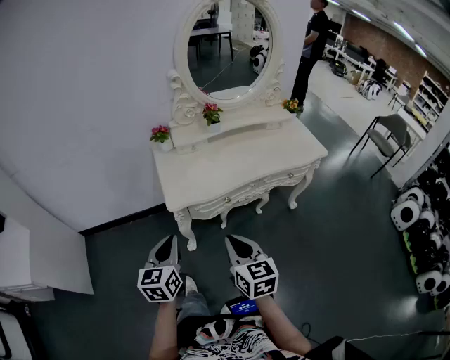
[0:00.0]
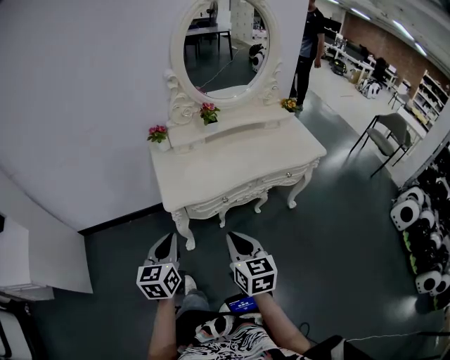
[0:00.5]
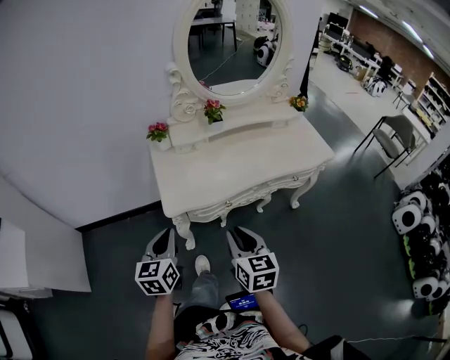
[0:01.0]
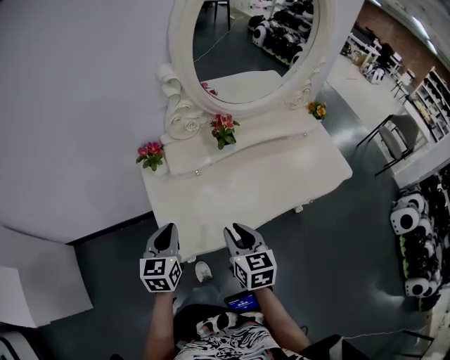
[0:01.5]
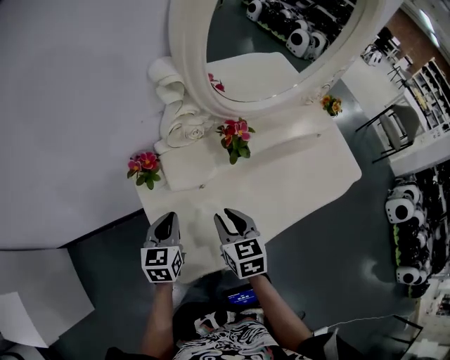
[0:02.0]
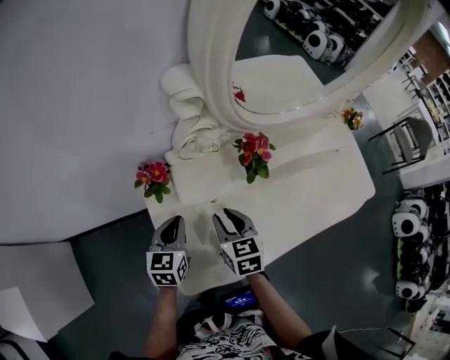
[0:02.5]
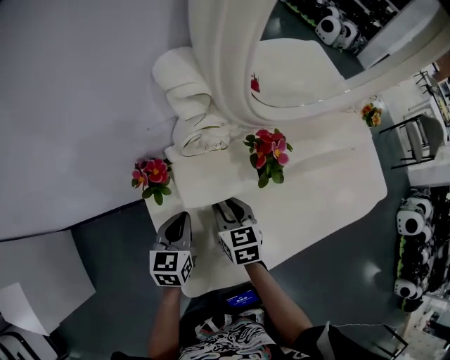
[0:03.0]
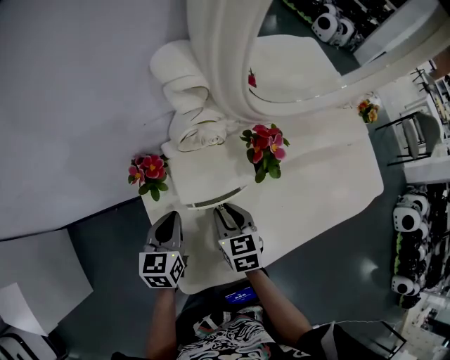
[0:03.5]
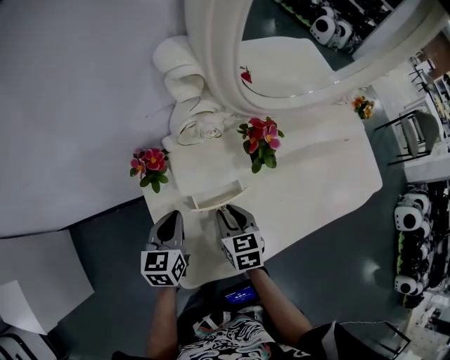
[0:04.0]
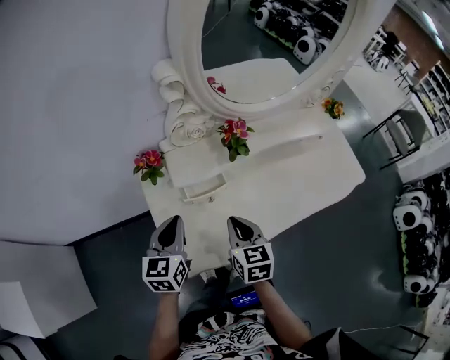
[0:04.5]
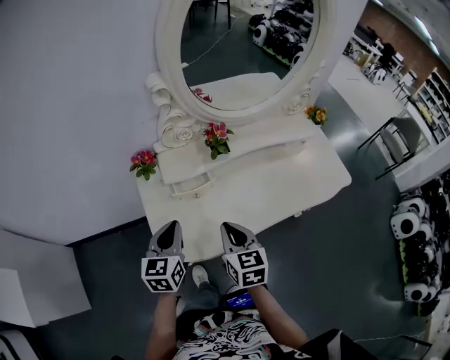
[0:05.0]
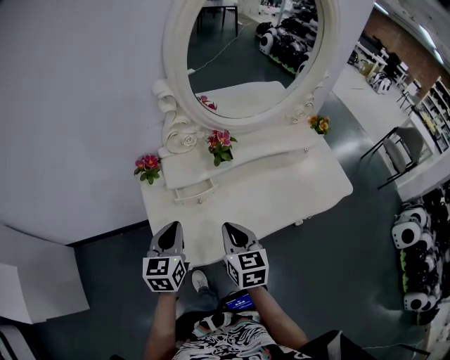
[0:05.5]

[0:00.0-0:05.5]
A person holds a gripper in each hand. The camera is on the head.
0:00.0 to 0:02.0: Both grippers are carried forward, about 40 cm. The right gripper opens its fingers.
0:02.0 to 0:03.5: The left gripper shifts by roughly 5 cm. Meanwhile the right gripper goes some 10 cm downward and forward.
0:03.5 to 0:05.5: The left gripper shifts roughly 20 cm backward, upward and to the right; the right gripper goes approximately 20 cm upward, backward and to the right, and closes.

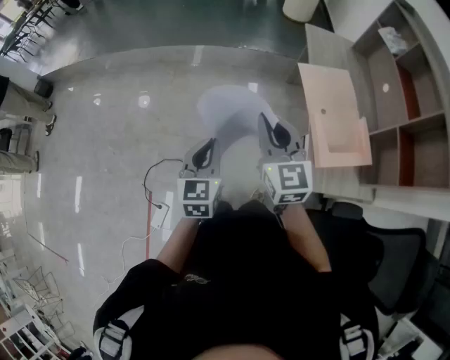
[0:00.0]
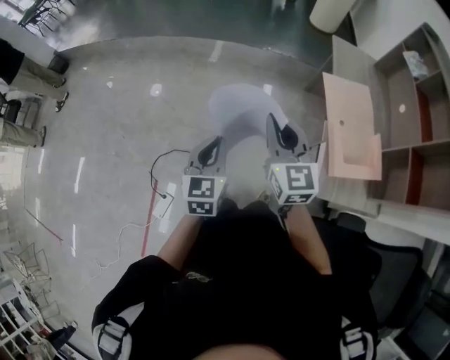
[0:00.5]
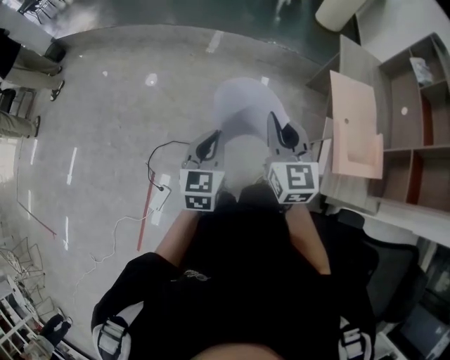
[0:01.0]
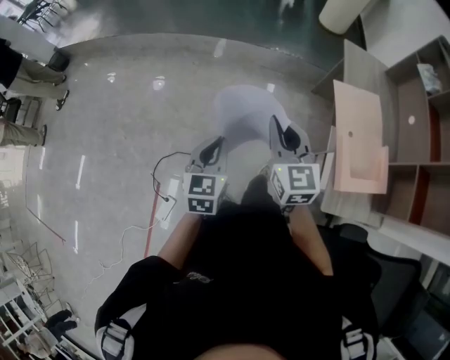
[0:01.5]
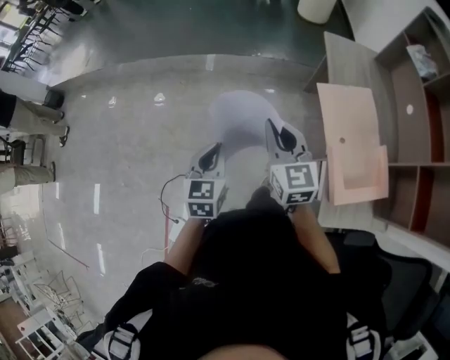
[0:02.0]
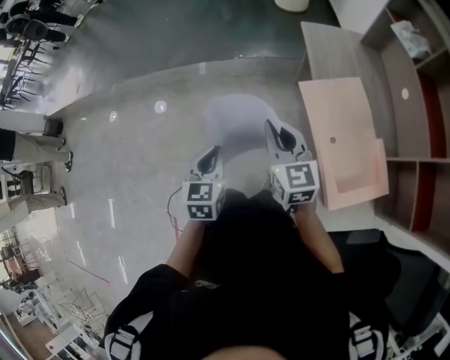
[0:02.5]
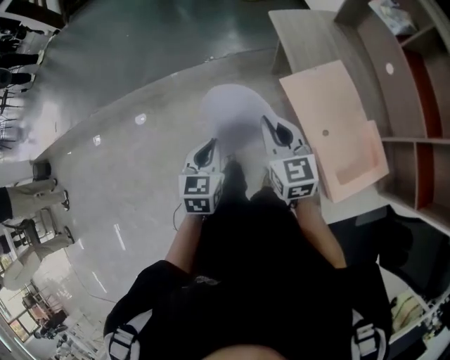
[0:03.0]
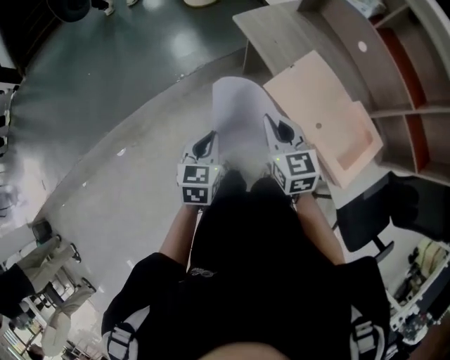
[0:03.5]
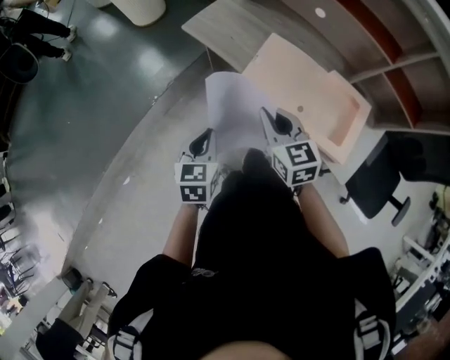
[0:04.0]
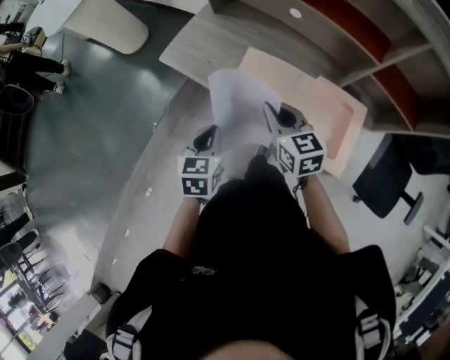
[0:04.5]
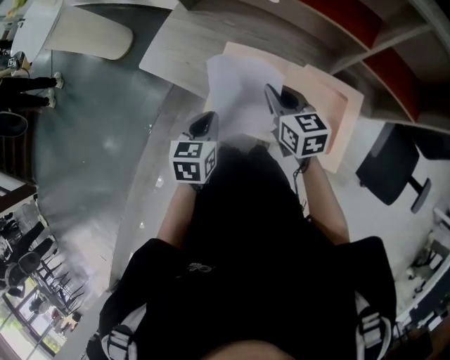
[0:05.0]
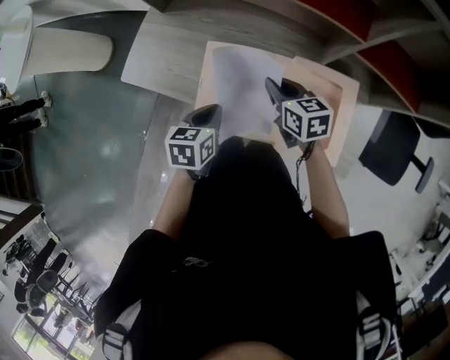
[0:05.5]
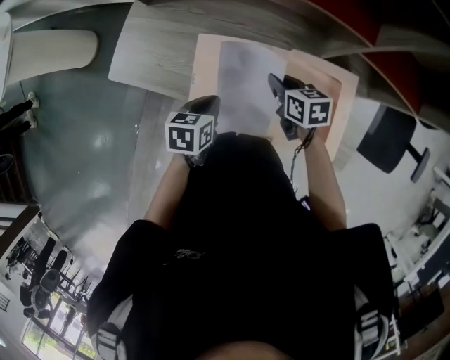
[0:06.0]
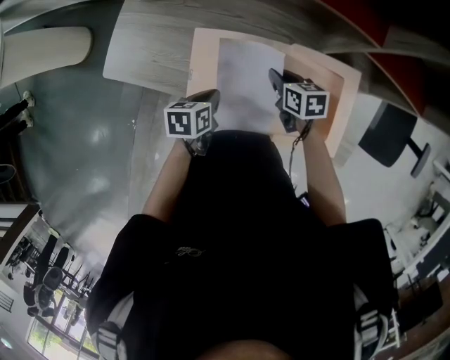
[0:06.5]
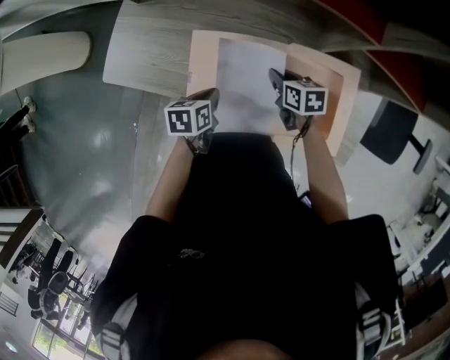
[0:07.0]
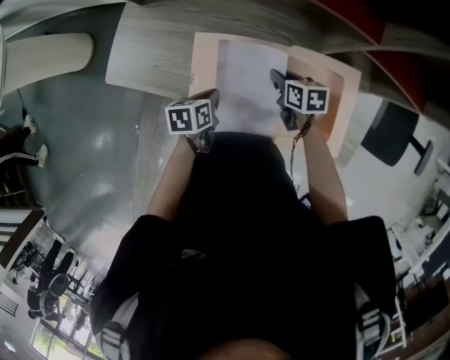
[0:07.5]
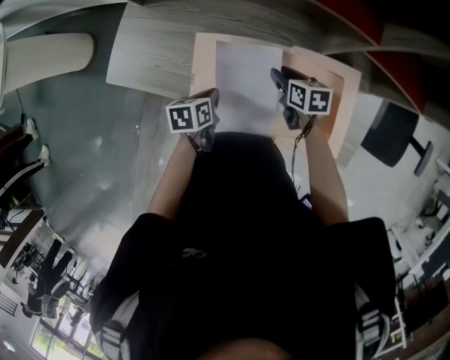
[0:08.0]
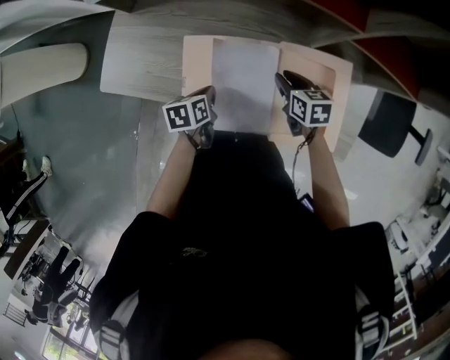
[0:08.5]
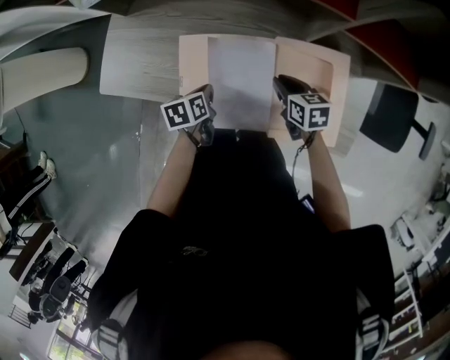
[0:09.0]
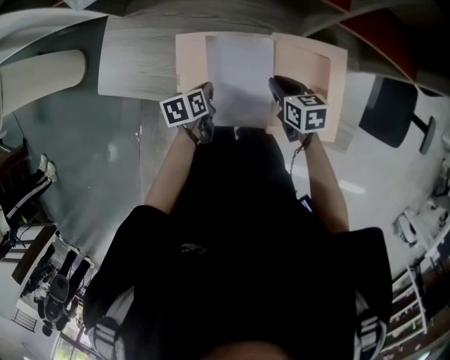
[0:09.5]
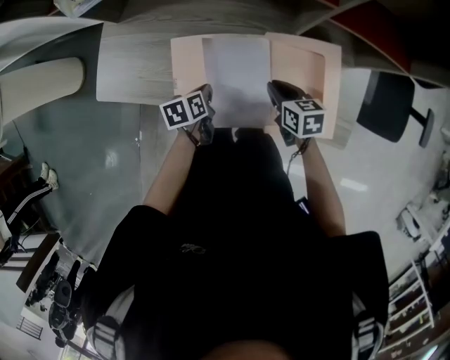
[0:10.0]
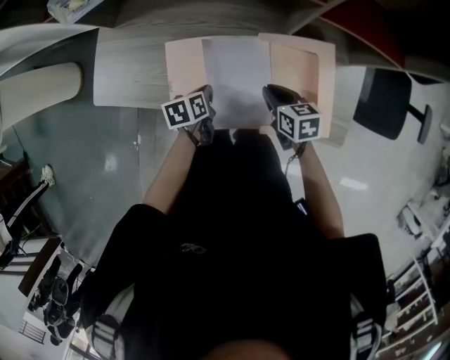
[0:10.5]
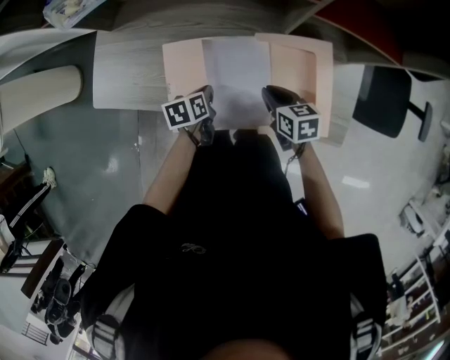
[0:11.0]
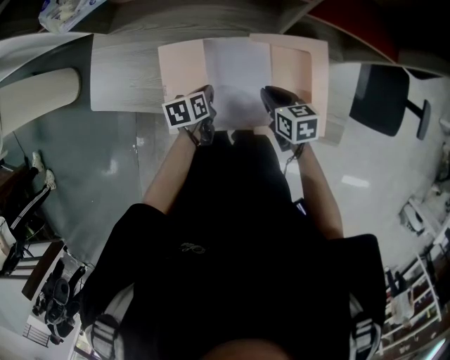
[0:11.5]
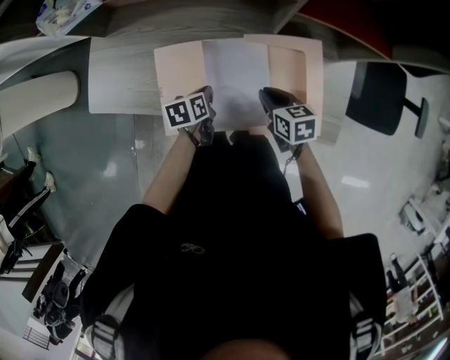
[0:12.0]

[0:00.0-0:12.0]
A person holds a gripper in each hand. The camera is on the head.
0:00.0 to 0:02.0: The grippers both shift forward by some 15 cm.
0:02.0 to 0:04.0: The right gripper moves approximately 25 cm, and changes its angle by roughly 50 degrees; the left gripper shifts by about 35 cm, and rotates approximately 50 degrees.
0:04.0 to 0:06.0: The left gripper ends up approximately 30 cm from where it was, and rotates approximately 40 degrees, while the right gripper moves some 35 cm, and turns by roughly 40 degrees.
0:06.0 to 0:08.0: The two grippers go roughly 5 cm downward. The right gripper opens its fingers.
0:08.0 to 0:10.0: The right gripper is displaced backward by about 10 cm, and closes up.
0:10.0 to 0:12.0: The left gripper is displaced to the right by about 5 cm.

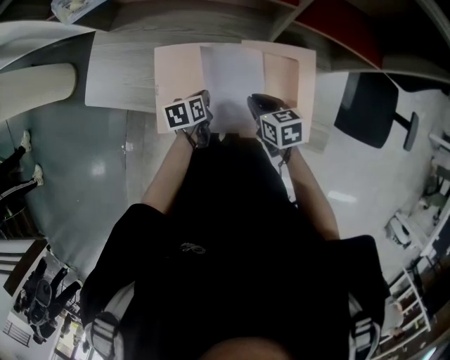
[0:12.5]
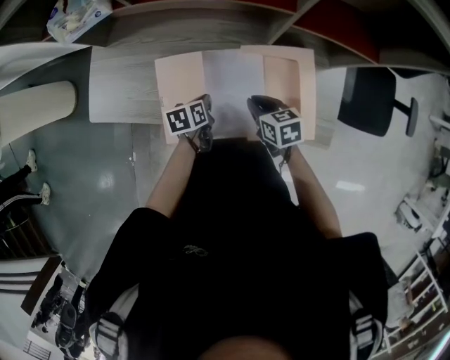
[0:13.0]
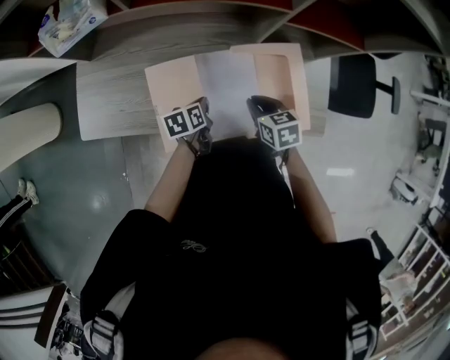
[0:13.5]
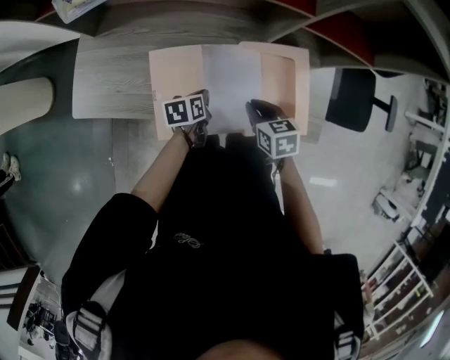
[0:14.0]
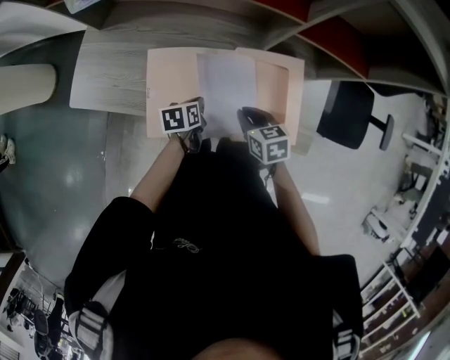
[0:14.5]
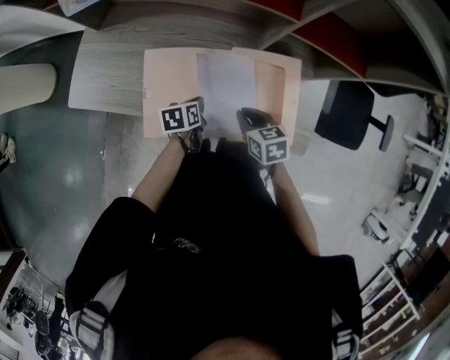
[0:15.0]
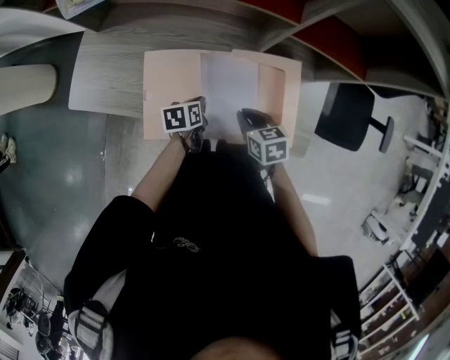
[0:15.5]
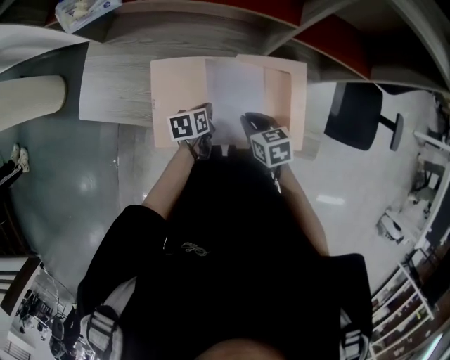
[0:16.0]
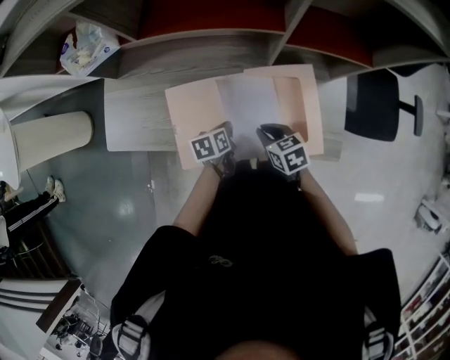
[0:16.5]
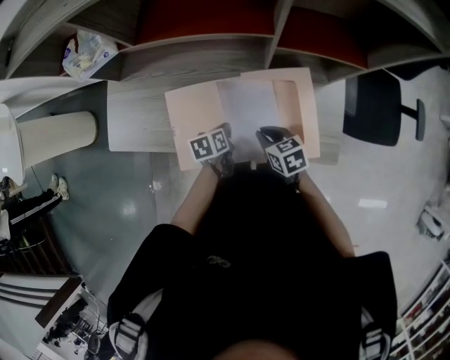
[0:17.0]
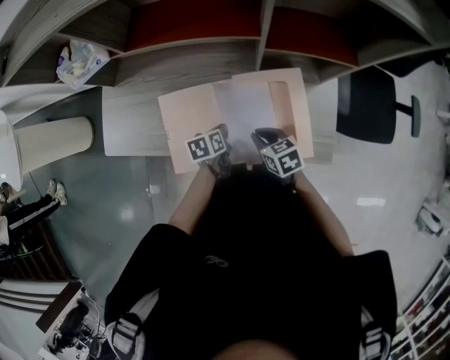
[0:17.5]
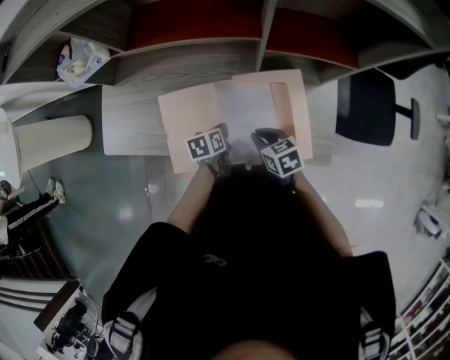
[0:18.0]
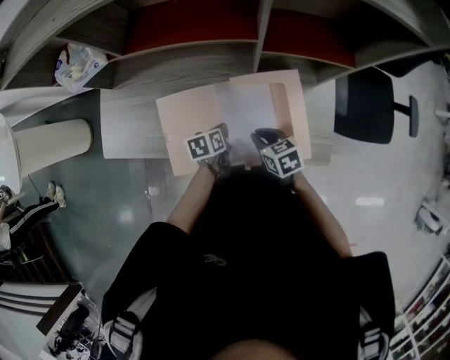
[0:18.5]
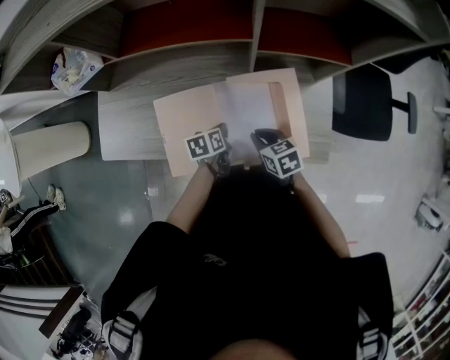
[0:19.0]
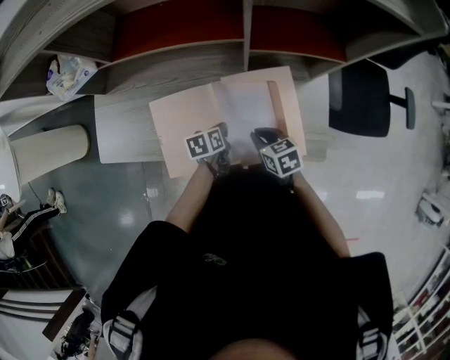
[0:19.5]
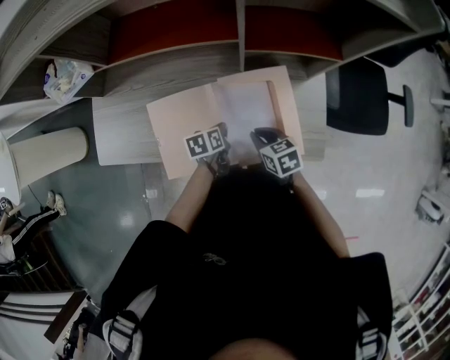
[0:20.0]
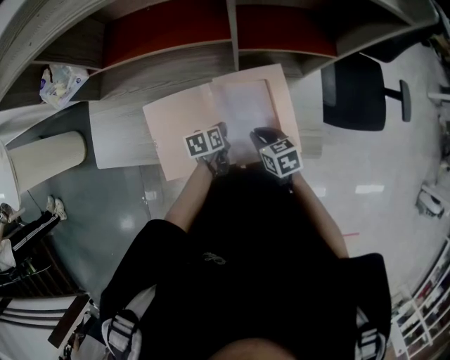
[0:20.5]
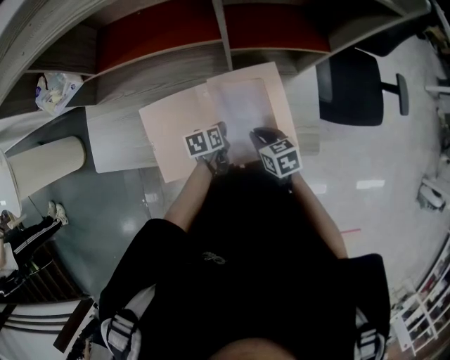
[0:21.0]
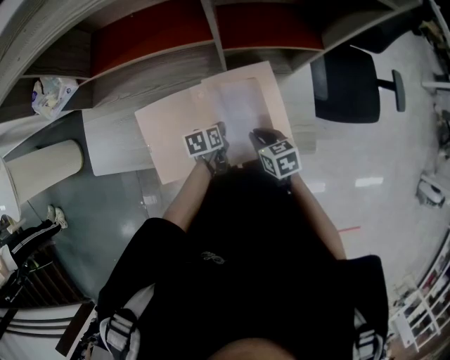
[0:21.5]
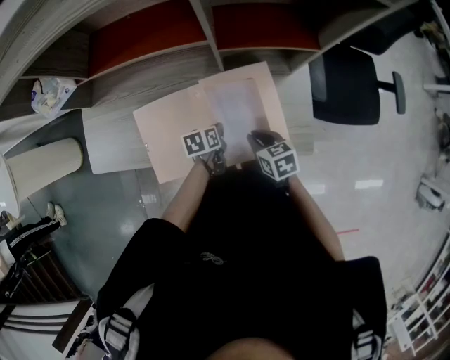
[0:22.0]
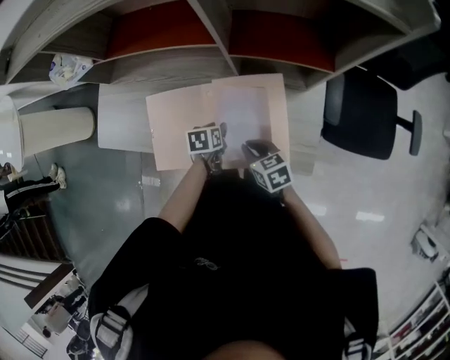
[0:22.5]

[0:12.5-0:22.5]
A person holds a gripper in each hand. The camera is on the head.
0:12.5 to 0:16.5: The grippers move only a little.
0:16.5 to 0:18.5: The grippers make only small movements.
0:18.5 to 0:20.5: The grippers move only a little.
0:20.5 to 0:22.5: The left gripper opens.
